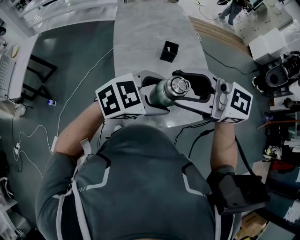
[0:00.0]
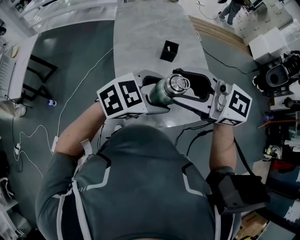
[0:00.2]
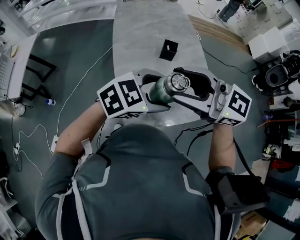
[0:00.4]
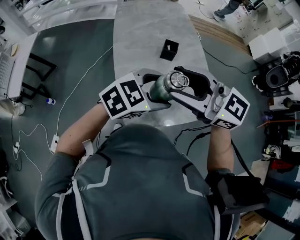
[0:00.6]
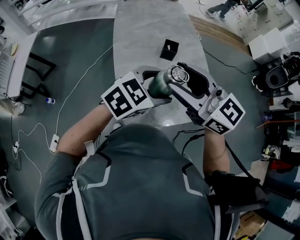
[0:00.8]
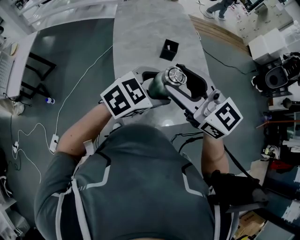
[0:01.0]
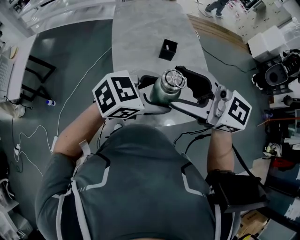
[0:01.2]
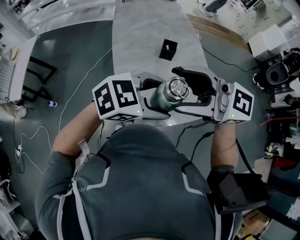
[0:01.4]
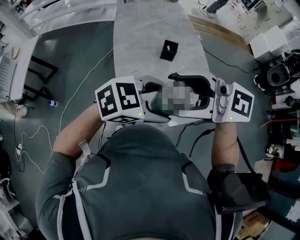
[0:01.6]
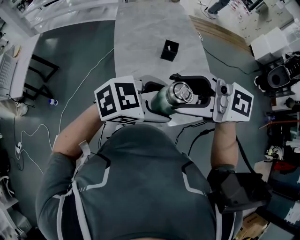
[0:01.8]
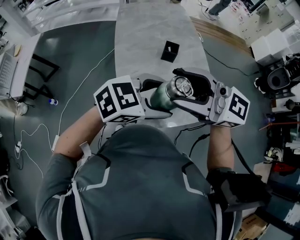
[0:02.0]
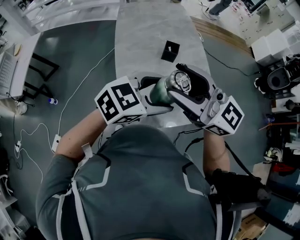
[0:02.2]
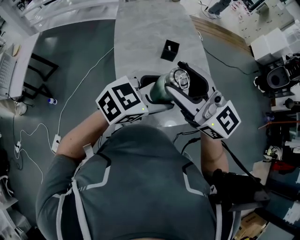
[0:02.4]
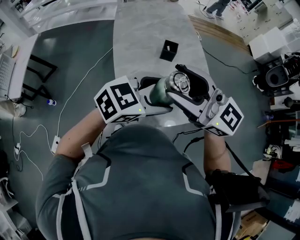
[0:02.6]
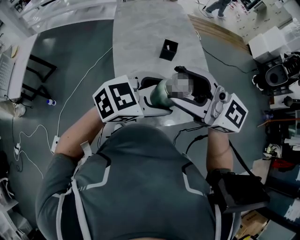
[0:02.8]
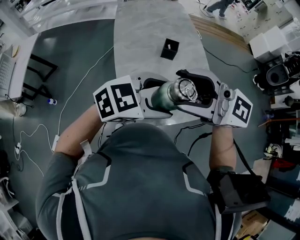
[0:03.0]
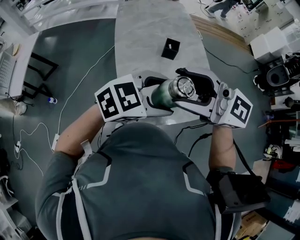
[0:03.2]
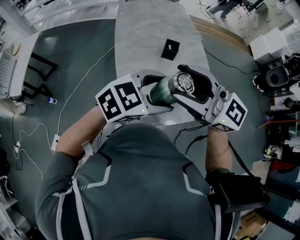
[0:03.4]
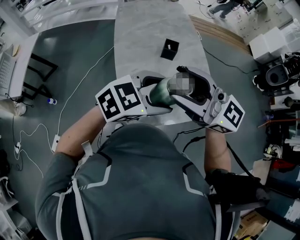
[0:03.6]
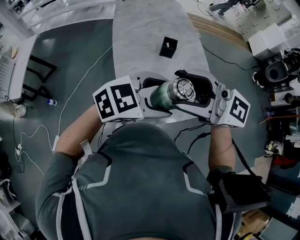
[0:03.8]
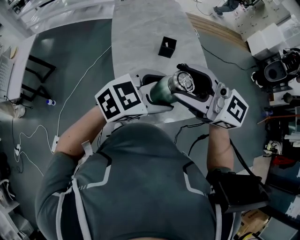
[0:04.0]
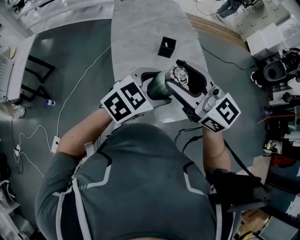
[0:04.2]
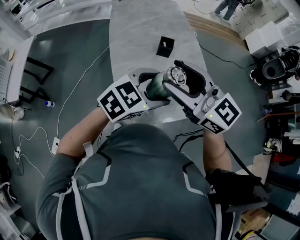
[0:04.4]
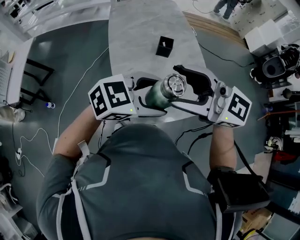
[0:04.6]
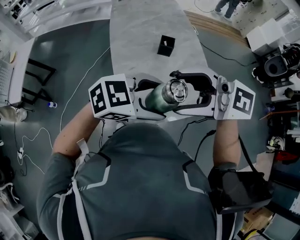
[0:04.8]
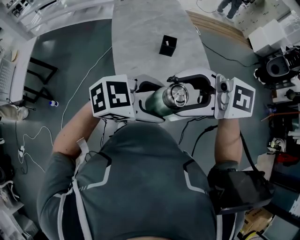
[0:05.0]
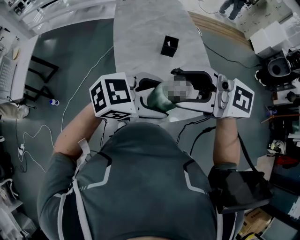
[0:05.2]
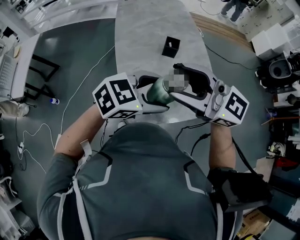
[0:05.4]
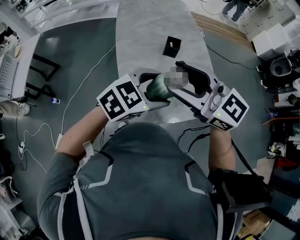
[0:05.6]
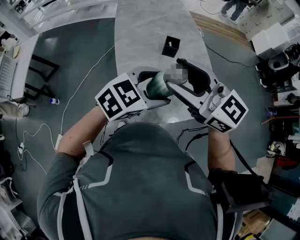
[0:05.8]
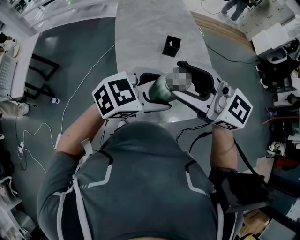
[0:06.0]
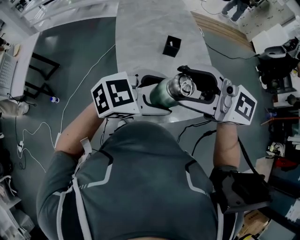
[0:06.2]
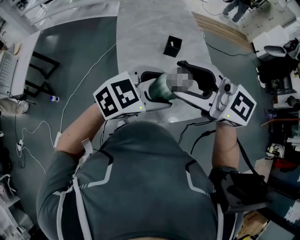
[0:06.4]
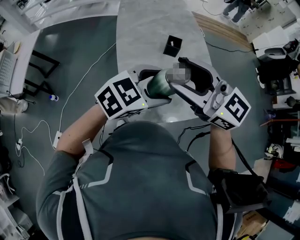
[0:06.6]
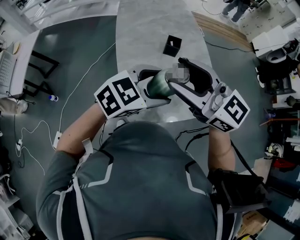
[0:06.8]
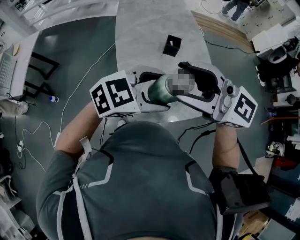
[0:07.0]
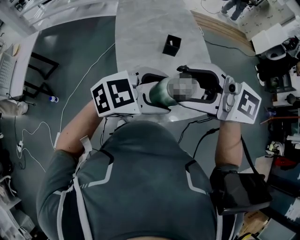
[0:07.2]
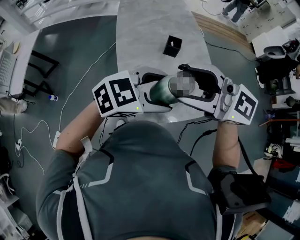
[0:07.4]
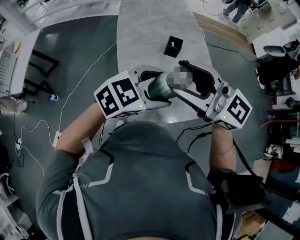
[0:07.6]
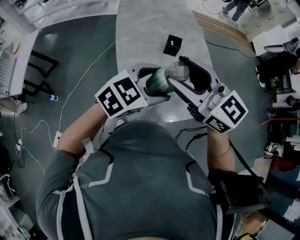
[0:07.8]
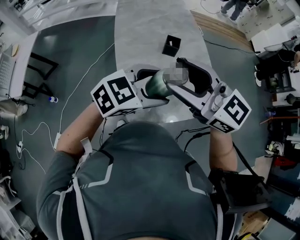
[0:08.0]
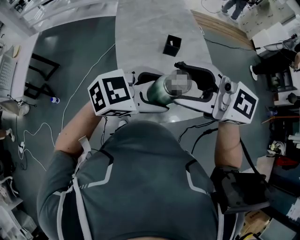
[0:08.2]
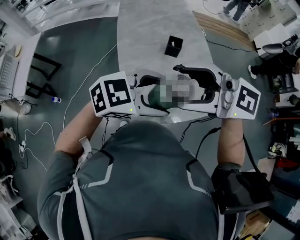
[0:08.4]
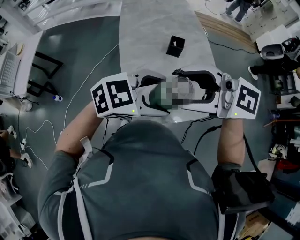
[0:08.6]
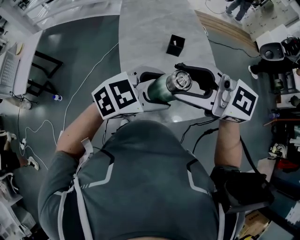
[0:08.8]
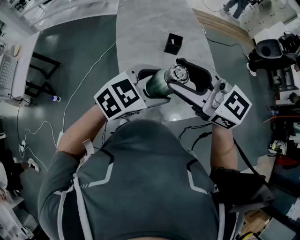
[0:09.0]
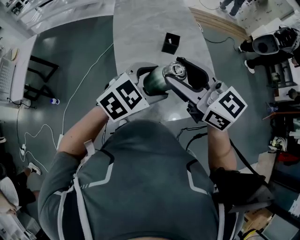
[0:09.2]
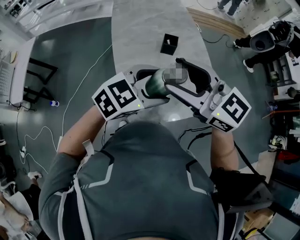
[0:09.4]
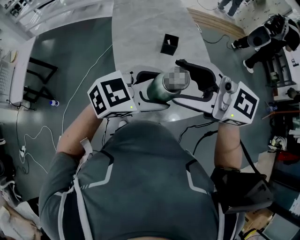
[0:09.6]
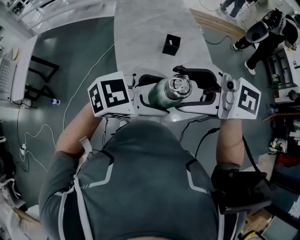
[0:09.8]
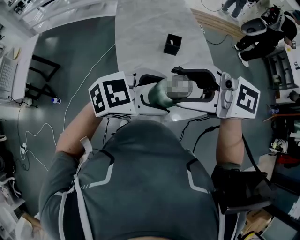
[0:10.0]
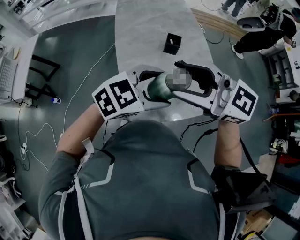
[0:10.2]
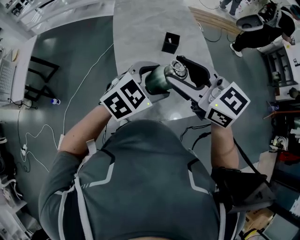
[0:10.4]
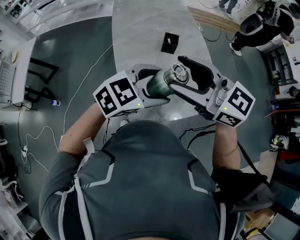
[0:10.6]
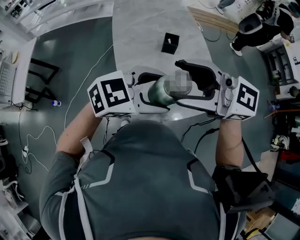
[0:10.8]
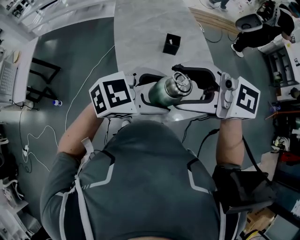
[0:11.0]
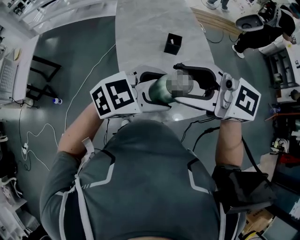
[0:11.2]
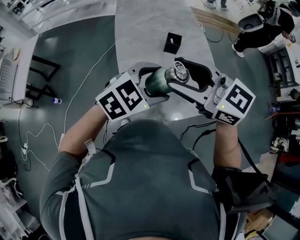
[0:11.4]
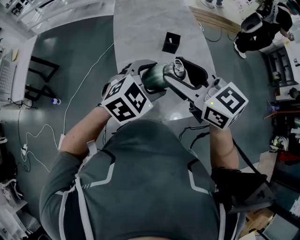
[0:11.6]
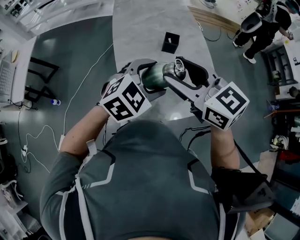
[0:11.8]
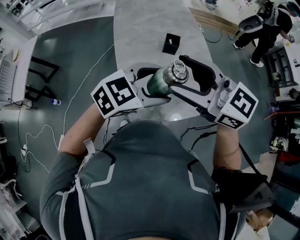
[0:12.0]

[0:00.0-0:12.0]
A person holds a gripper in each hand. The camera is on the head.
0:03.0 to 0:04.4: The right gripper changes its angle by some 30 degrees.
0:06.0 to 0:07.6: The grippers move only a little.

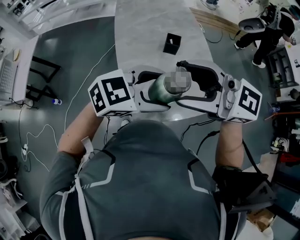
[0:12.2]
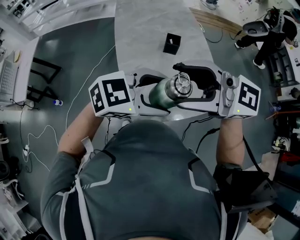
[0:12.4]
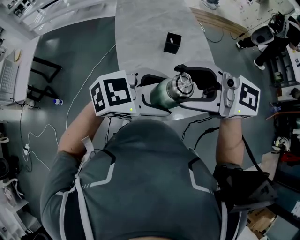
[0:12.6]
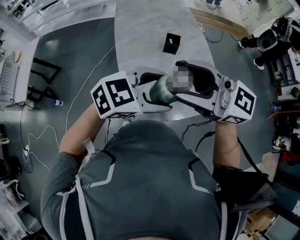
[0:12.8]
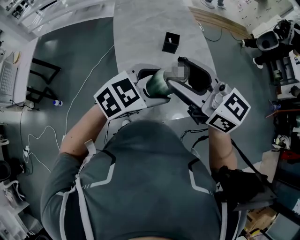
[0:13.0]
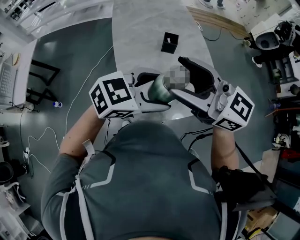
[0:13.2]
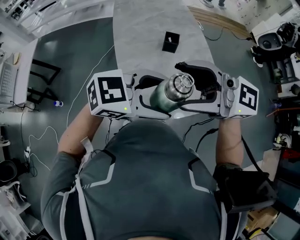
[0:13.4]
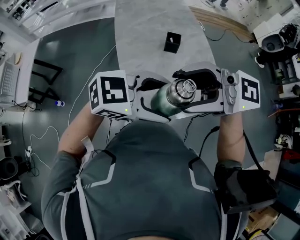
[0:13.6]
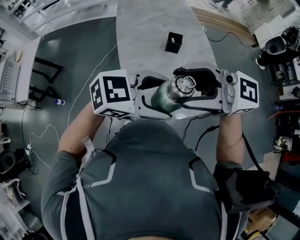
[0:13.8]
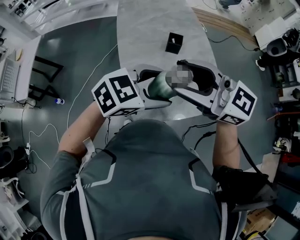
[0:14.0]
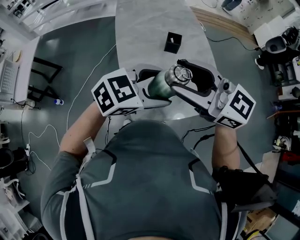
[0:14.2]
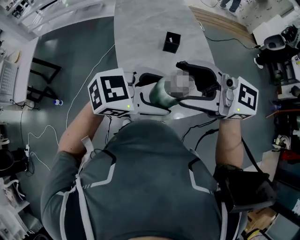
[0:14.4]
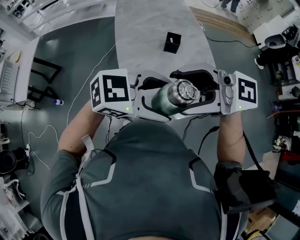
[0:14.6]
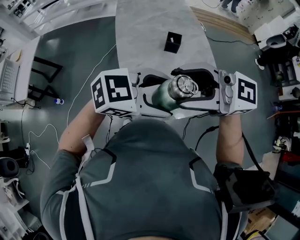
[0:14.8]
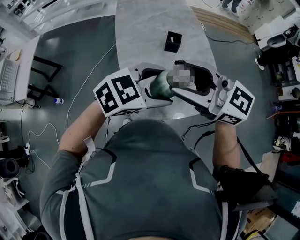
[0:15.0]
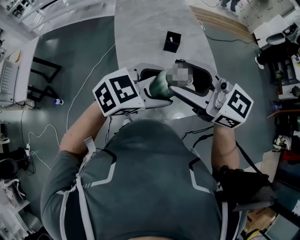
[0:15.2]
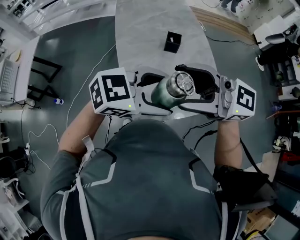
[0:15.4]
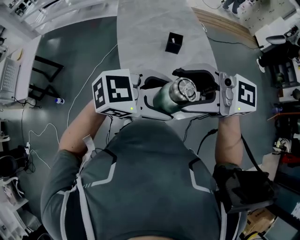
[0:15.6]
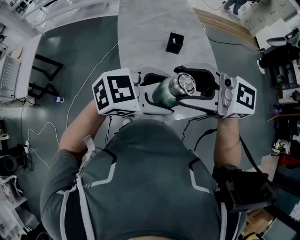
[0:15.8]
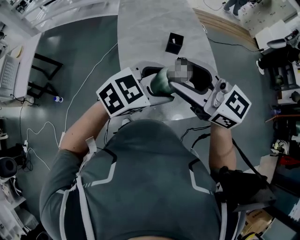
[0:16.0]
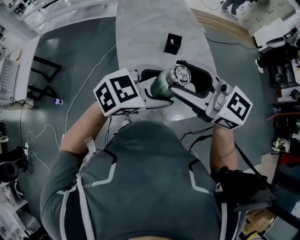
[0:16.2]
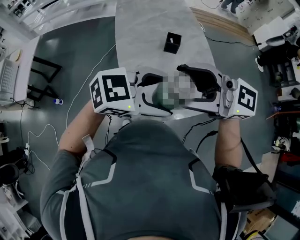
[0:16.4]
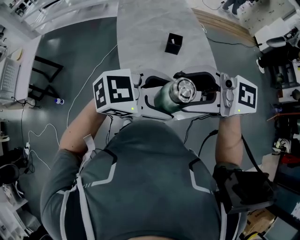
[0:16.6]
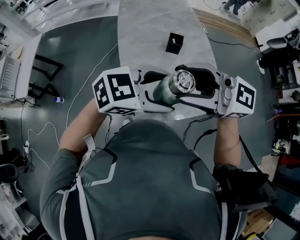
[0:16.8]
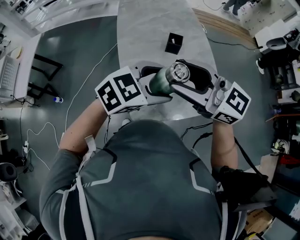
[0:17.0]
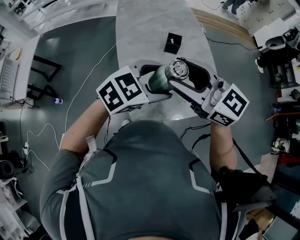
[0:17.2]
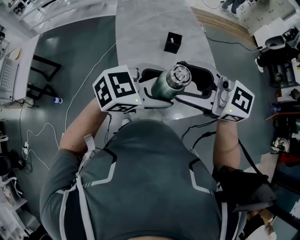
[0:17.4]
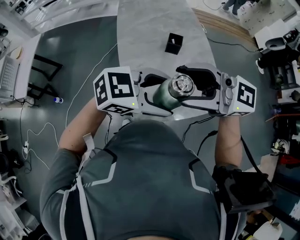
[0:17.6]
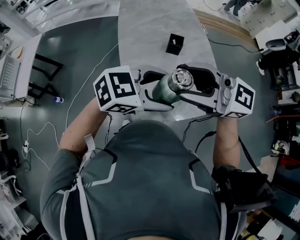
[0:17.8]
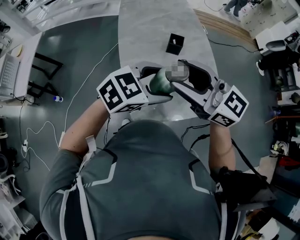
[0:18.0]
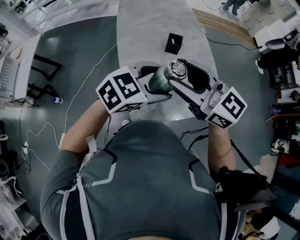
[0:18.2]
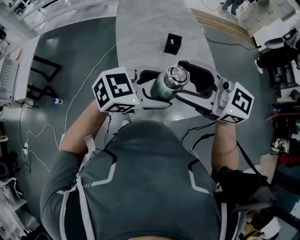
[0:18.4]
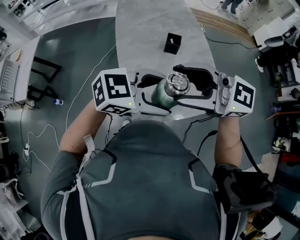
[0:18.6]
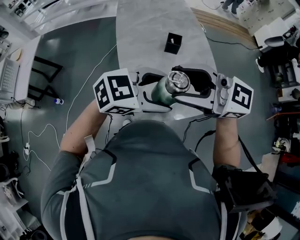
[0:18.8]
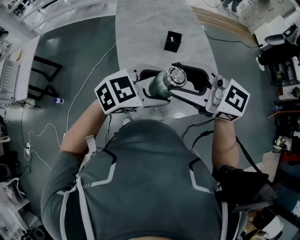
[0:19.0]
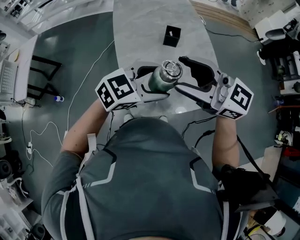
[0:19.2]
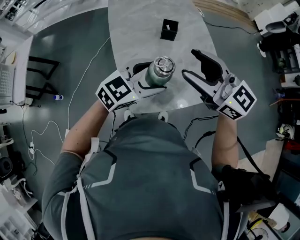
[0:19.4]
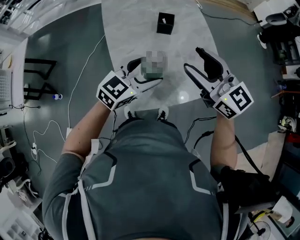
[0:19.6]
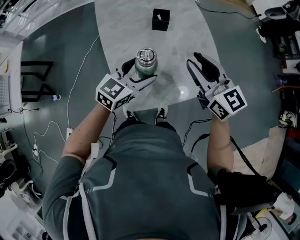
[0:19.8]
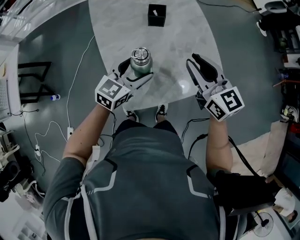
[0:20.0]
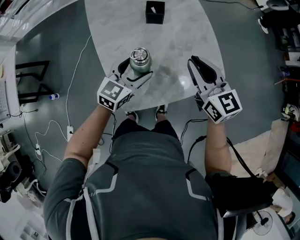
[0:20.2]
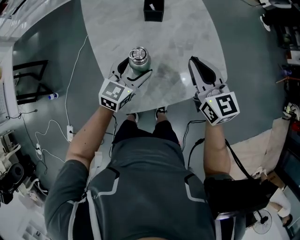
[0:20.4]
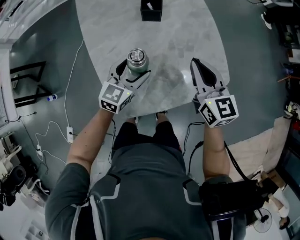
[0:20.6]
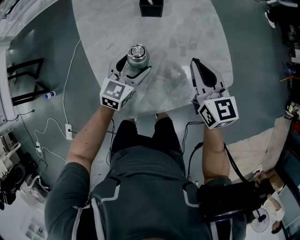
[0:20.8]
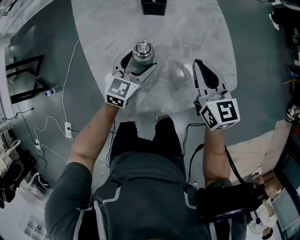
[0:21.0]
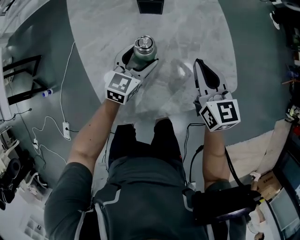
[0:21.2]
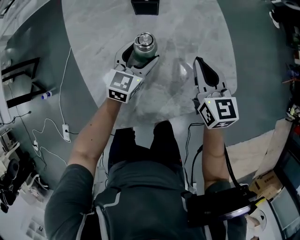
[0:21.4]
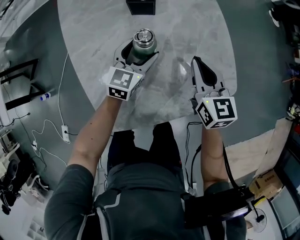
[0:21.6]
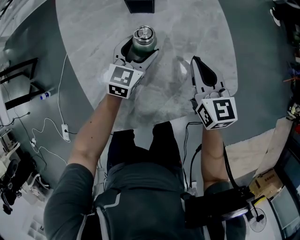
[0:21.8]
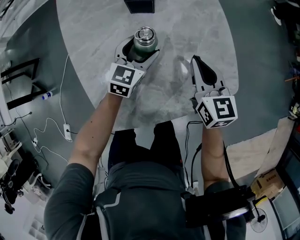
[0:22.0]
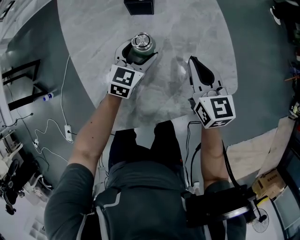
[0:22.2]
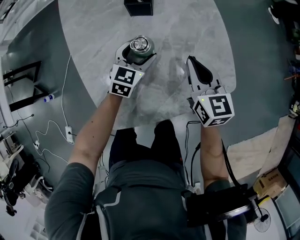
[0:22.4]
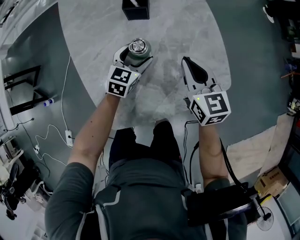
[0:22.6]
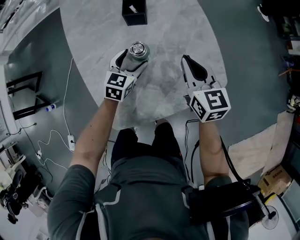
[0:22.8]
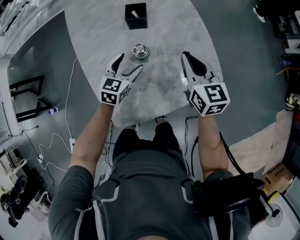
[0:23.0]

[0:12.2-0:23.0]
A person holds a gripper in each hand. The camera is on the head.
0:13.8 to 0:15.2: The right gripper ends up roughly 5 cm from where it was, and rotates some 30 degrees. Meanwhile the left gripper shifts by some 5 cm.
0:15.2 to 0:16.8: The right gripper swivels roughly 20 degrees.
0:18.4 to 0:20.0: The right gripper ends up some 25 cm from where it was, rotates roughly 50 degrees, and closes up, while the left gripper heads downward, covering some 15 cm, and changes its angle by approximately 30 degrees.
0:20.0 to 0:21.4: Both grippers move downward and forward, approximately 20 cm.
0:21.4 to 0:23.0: The left gripper goes roughly 5 cm to the left. Meanwhile the right gripper heads upward, covering some 5 cm.

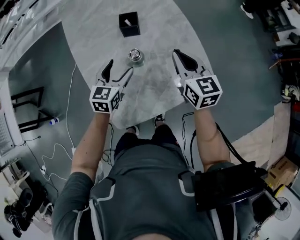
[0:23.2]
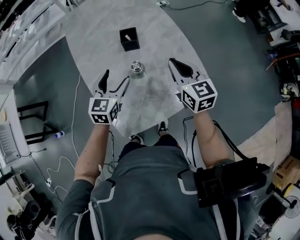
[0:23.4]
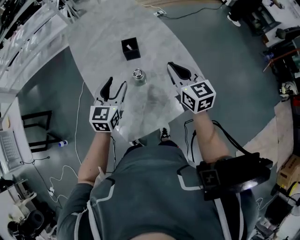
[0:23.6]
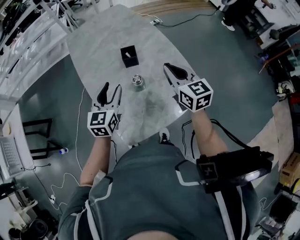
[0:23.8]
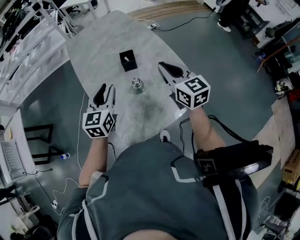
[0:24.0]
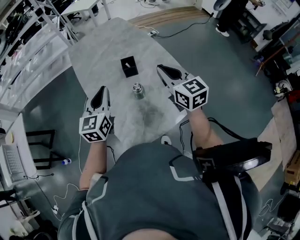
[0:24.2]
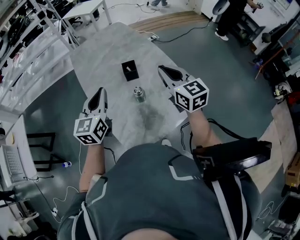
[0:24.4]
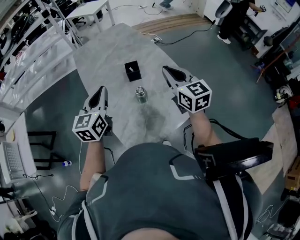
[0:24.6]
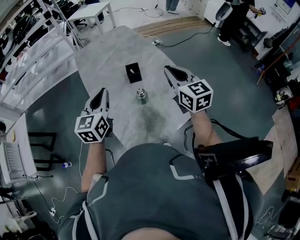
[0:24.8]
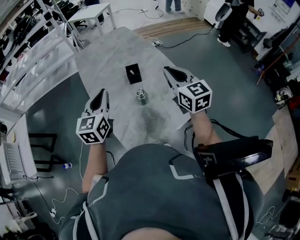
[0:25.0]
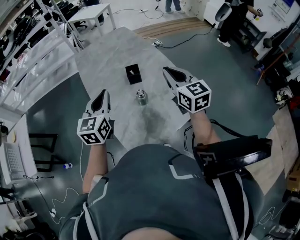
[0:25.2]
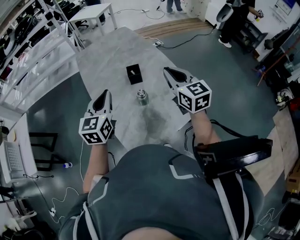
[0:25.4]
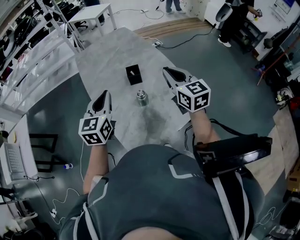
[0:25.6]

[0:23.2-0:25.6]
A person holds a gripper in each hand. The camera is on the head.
0:23.2 to 0:24.4: Both grippers move upward, about 20 cm. The left gripper closes its fingers.
0:24.4 to 0:25.6: There are only small adjustments of the grippers.
